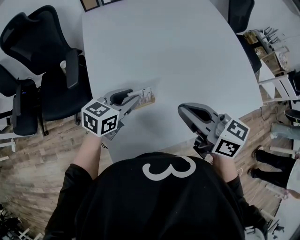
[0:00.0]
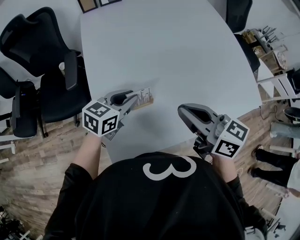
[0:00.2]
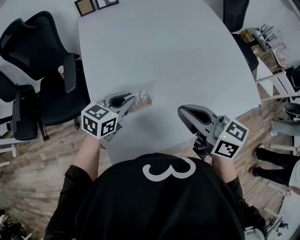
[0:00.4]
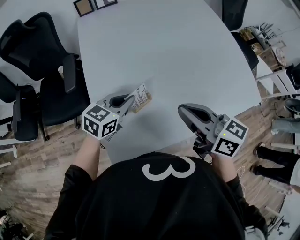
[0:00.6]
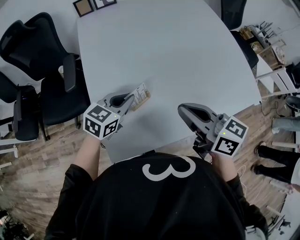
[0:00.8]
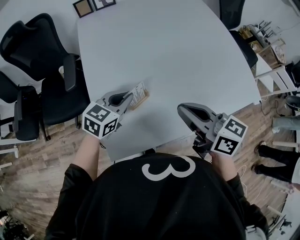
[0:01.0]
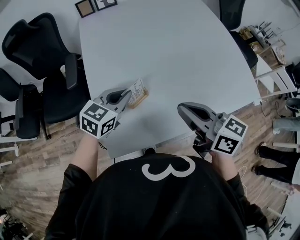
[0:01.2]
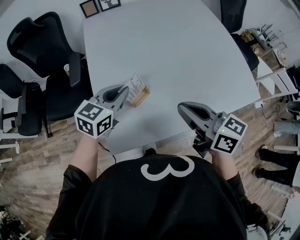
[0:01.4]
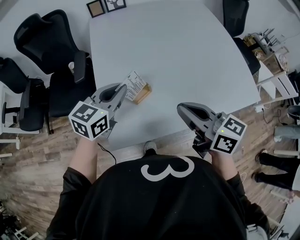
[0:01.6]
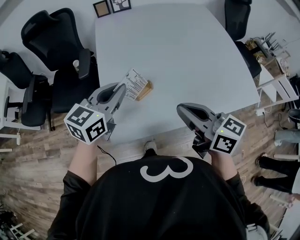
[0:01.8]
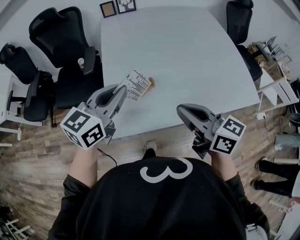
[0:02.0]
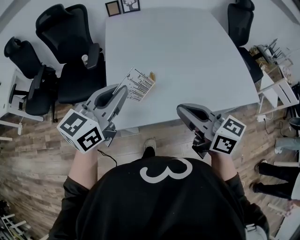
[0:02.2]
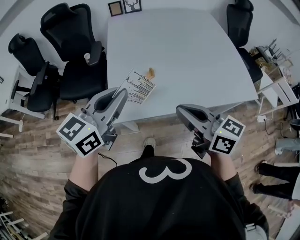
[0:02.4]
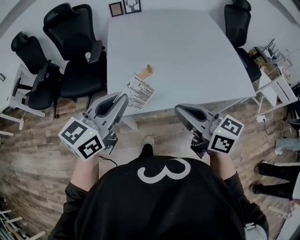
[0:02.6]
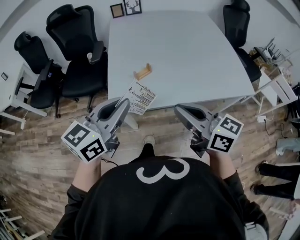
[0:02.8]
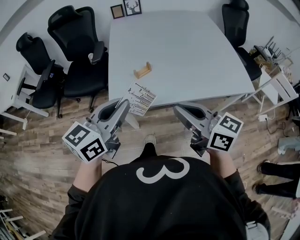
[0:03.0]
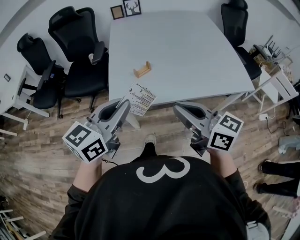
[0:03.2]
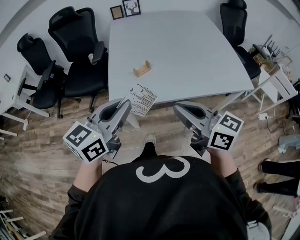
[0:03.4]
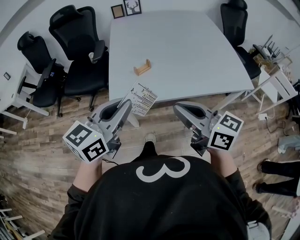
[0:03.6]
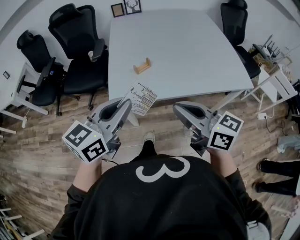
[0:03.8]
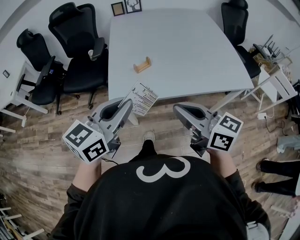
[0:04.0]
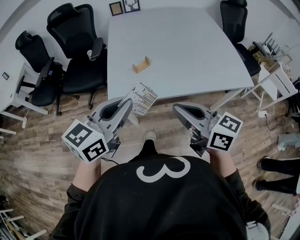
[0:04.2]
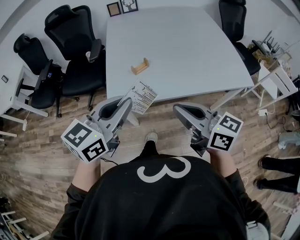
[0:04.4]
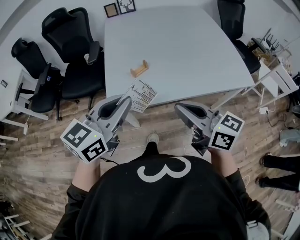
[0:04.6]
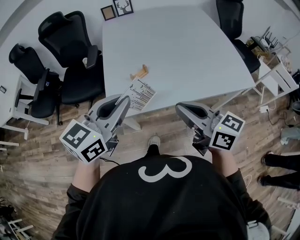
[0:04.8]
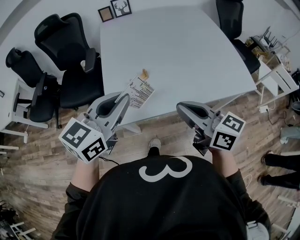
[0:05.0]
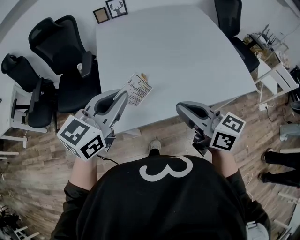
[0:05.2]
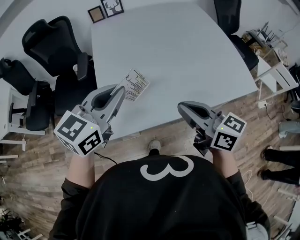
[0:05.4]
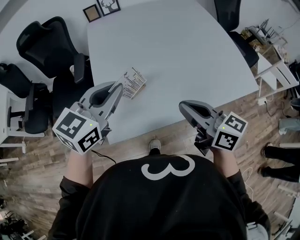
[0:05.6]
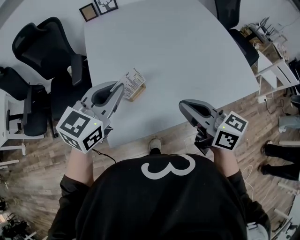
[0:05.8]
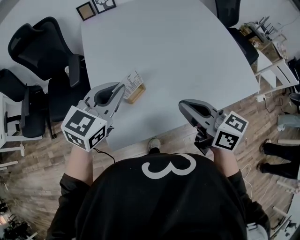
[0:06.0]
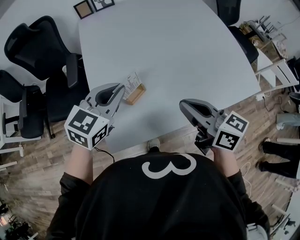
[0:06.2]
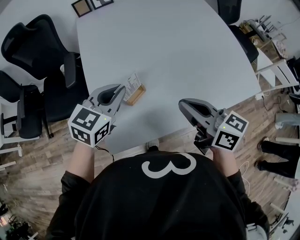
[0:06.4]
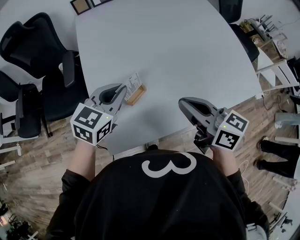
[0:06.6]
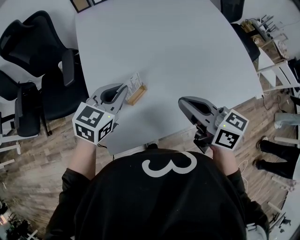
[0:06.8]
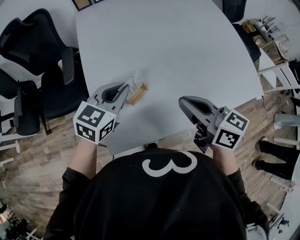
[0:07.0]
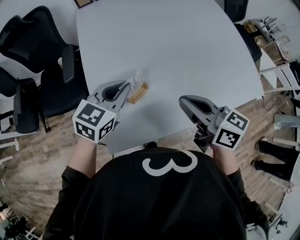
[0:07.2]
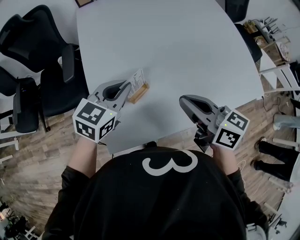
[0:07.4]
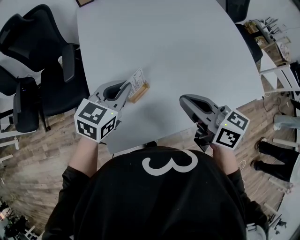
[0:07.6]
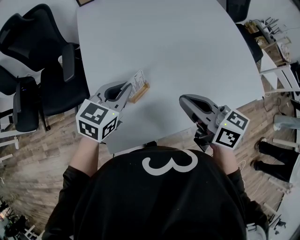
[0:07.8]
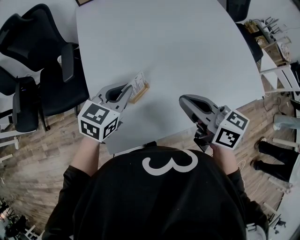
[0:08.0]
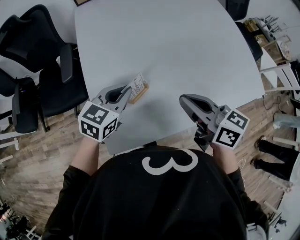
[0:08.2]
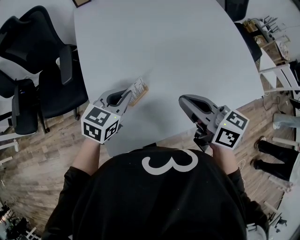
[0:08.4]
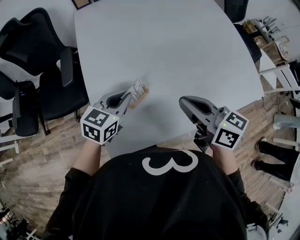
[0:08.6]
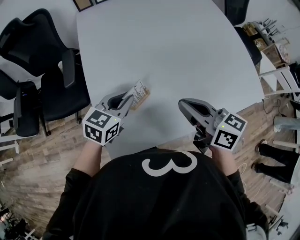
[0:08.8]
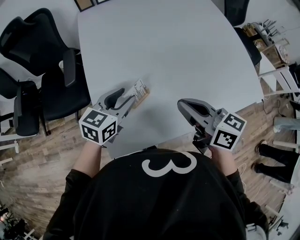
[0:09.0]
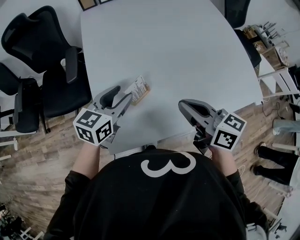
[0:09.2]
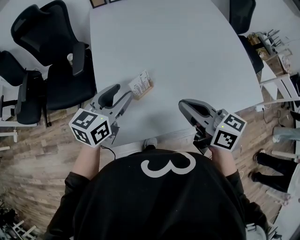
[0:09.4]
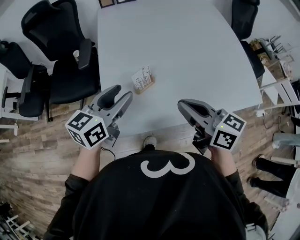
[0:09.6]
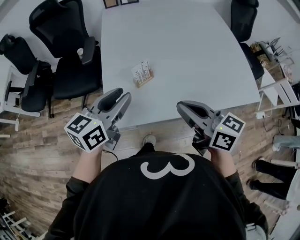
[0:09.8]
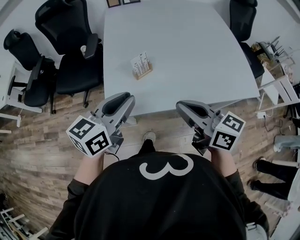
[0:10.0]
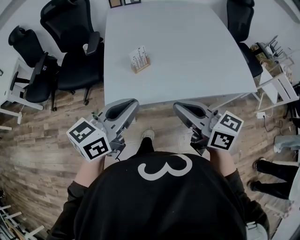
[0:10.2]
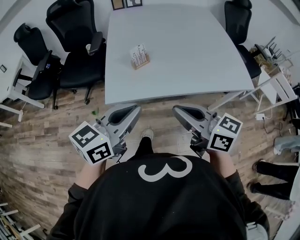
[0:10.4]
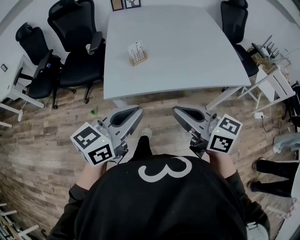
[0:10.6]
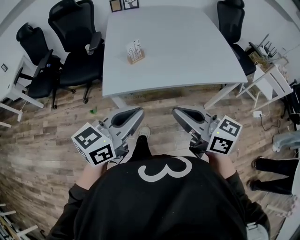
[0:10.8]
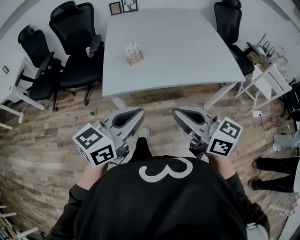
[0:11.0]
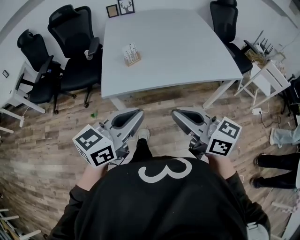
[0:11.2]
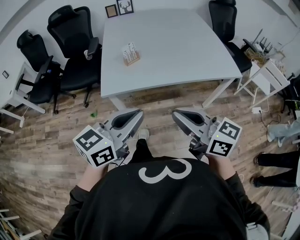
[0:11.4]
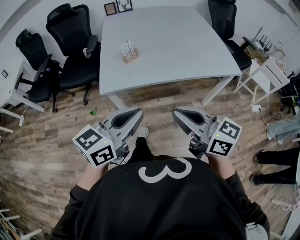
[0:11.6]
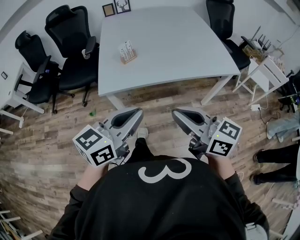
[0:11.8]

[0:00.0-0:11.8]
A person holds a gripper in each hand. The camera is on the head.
0:00.0 to 0:01.4: The right gripper changes place by some 5 cm; the left gripper goes about 5 cm upward, and closes up.
0:01.4 to 0:03.0: The right gripper shifts approximately 20 cm backward, while the left gripper moves backward and upward, about 30 cm, and rotates roughly 20 degrees.
0:03.0 to 0:04.4: There are only small adjustments of the grippers.
0:04.4 to 0:06.0: Both grippers travel together forward, about 25 cm.
0:06.0 to 0:07.4: The right gripper moves forward, roughly 5 cm, while the left gripper travels downward and forward by approximately 10 cm.
0:07.4 to 0:08.8: The left gripper is displaced downward by roughly 5 cm.
0:08.8 to 0:10.4: The right gripper goes about 25 cm backward, while the left gripper goes about 35 cm backward and upward, swivels approximately 30 degrees, and opens, then closes once more.
0:10.4 to 0:11.8: The two grippers go about 10 cm backward.

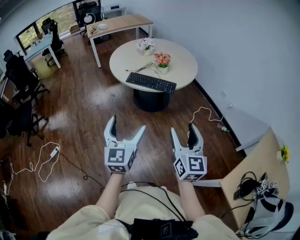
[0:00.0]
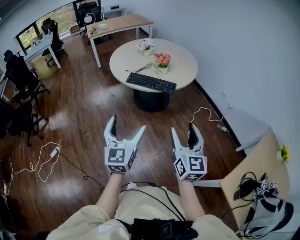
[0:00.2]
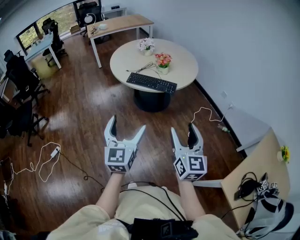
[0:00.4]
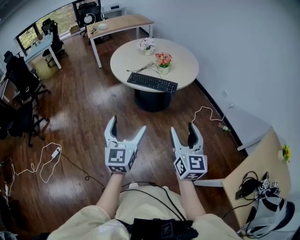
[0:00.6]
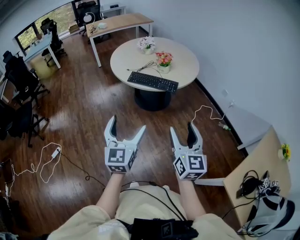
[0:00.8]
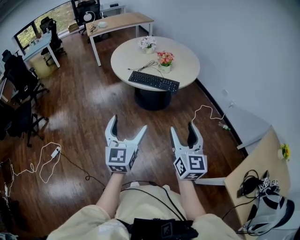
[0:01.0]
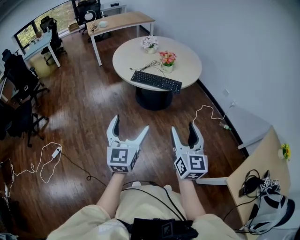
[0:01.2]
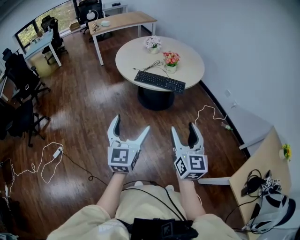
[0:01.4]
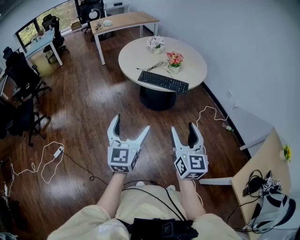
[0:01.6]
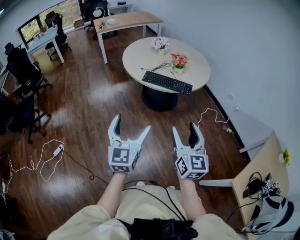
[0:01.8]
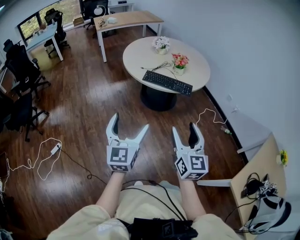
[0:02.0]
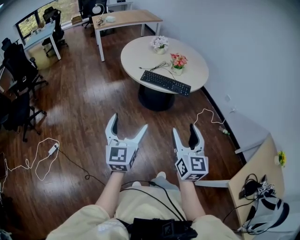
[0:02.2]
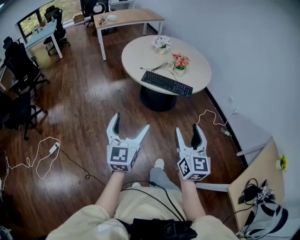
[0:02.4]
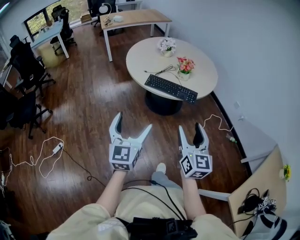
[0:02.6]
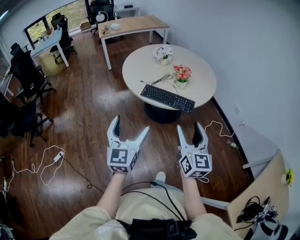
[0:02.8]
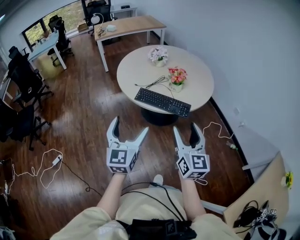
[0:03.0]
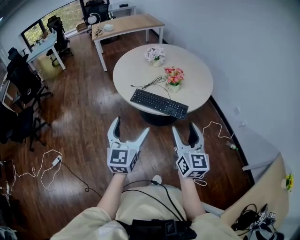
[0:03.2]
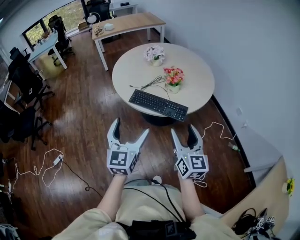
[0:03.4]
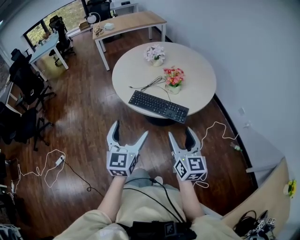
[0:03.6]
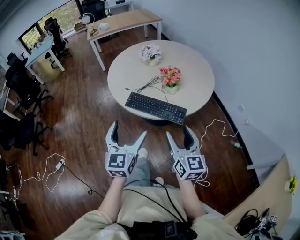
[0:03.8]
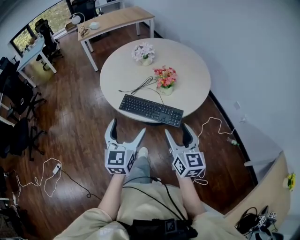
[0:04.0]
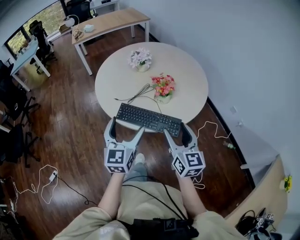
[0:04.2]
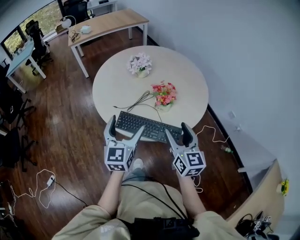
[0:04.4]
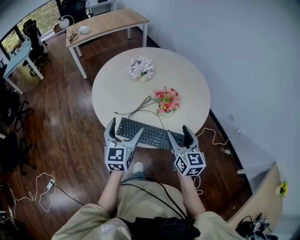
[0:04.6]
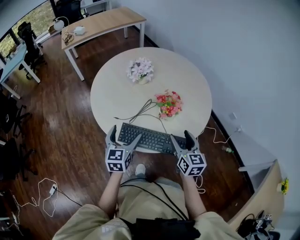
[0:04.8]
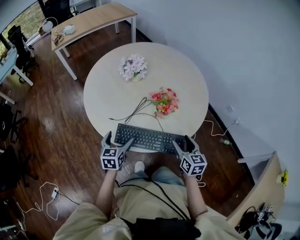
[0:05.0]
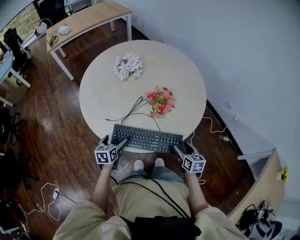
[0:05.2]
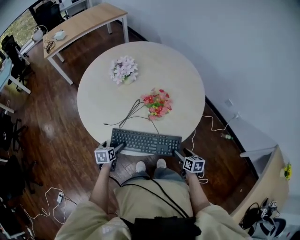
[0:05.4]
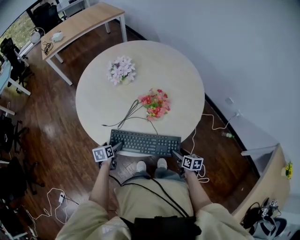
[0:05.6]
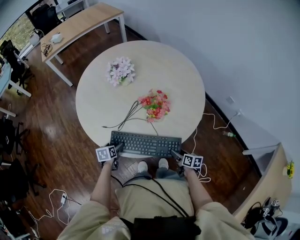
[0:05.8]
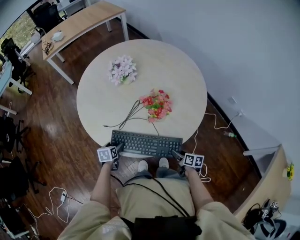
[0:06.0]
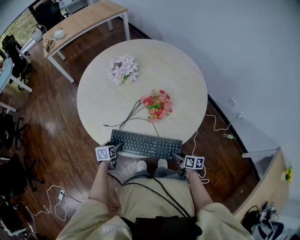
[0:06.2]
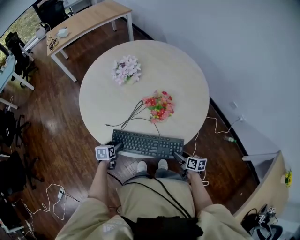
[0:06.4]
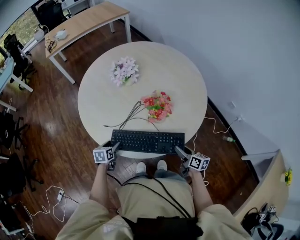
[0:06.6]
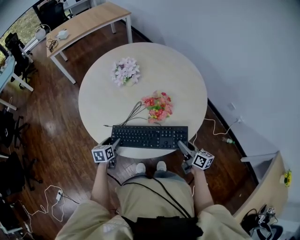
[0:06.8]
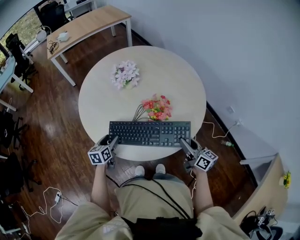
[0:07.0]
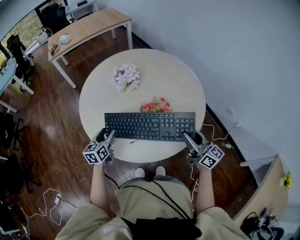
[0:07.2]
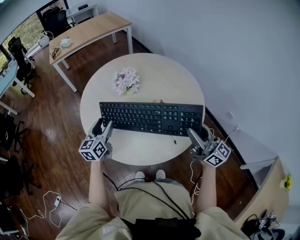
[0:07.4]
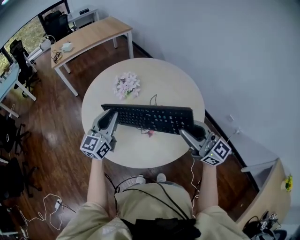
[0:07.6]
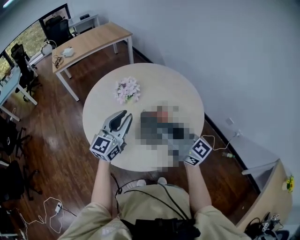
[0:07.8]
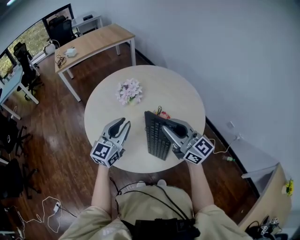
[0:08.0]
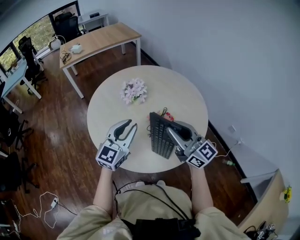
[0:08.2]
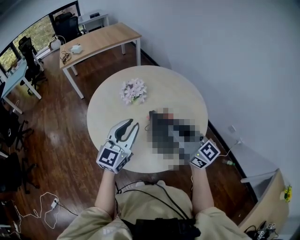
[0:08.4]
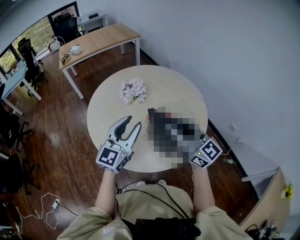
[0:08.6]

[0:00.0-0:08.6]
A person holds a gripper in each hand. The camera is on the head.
0:00.0 to 0:01.4: Both grippers travel together to the left, roughly 10 cm.
0:01.4 to 0:02.8: The two grippers go approximately 15 cm forward.
0:02.8 to 0:04.4: Both grippers move forward, roughly 30 cm.
0:04.4 to 0:05.8: Both grippers move downward, roughly 35 cm. The left gripper angles its fingers downward, by approximately 50 degrees, while the right gripper tips its fingers downward by approximately 30 degrees.
0:05.8 to 0:07.2: The left gripper moves upward, roughly 20 cm, and tips its fingers upward by about 30 degrees, while the right gripper heads upward, covering approximately 30 cm, tips its fingers upward by about 40 degrees, and closes its fingers.
0:07.2 to 0:08.6: The left gripper travels upward and to the right by approximately 30 cm, and swivels about 40 degrees, while the right gripper shifts about 20 cm upward and to the left, and changes its angle by about 30 degrees.

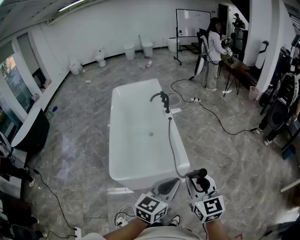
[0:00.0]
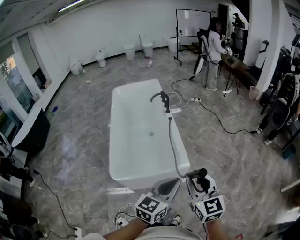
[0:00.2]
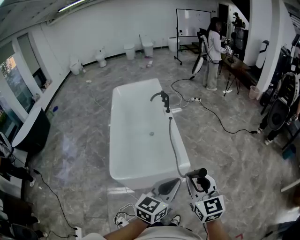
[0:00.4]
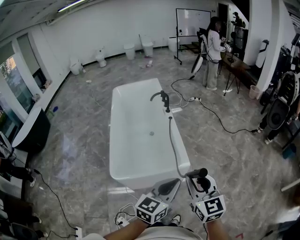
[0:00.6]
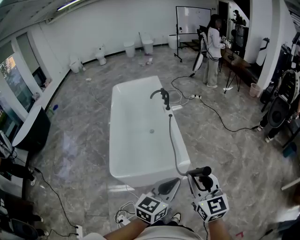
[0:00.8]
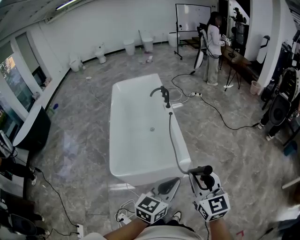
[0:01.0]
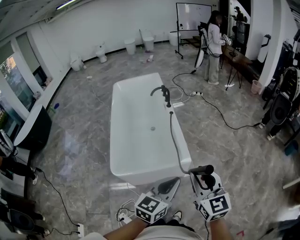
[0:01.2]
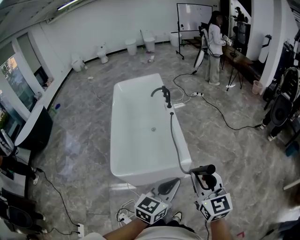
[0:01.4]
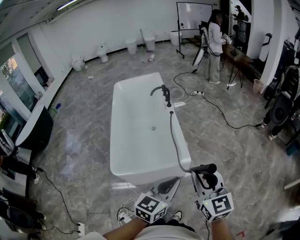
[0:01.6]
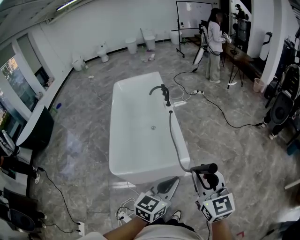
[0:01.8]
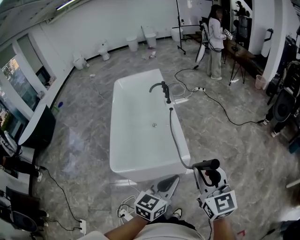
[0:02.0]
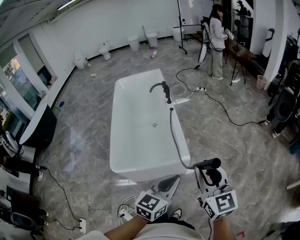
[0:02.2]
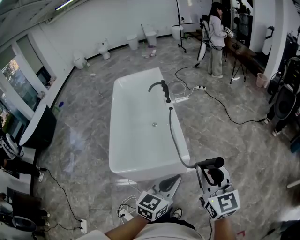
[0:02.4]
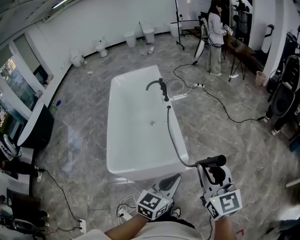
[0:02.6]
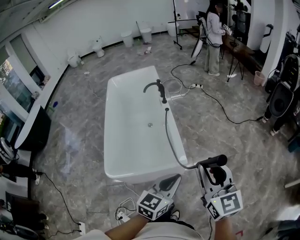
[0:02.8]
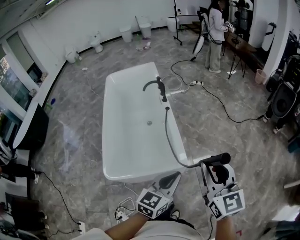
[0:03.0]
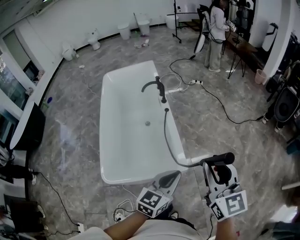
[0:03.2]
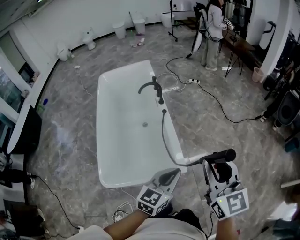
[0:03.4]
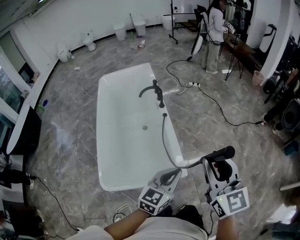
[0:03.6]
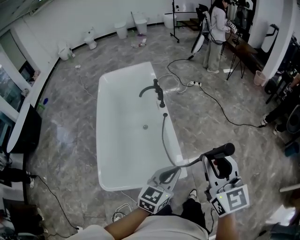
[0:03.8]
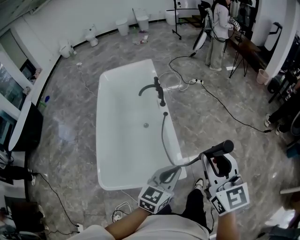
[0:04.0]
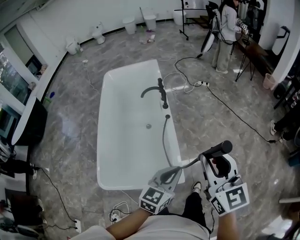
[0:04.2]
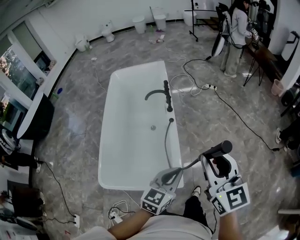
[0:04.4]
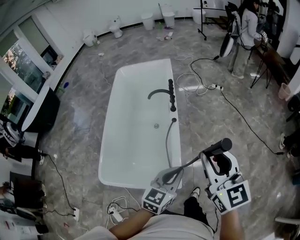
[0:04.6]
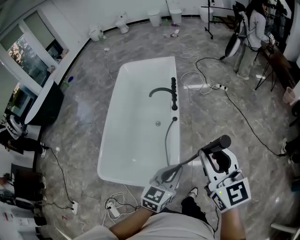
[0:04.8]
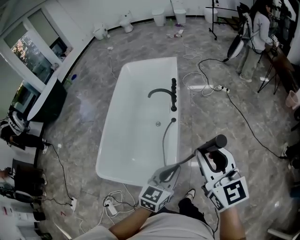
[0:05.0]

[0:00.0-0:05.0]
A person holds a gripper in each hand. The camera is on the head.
0:00.0 to 0:01.6: The grippers stay close to where they were, moving slightly.
0:01.6 to 0:03.4: Both grippers travel together forward, about 20 cm.
0:03.4 to 0:05.0: The left gripper heads forward and to the right, covering about 20 cm, and swivels about 20 degrees. Meanwhile the right gripper heads forward, covering about 20 cm, and swivels approximately 20 degrees.
